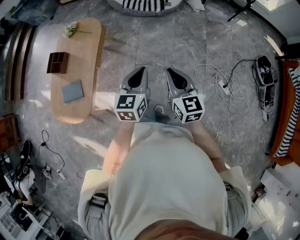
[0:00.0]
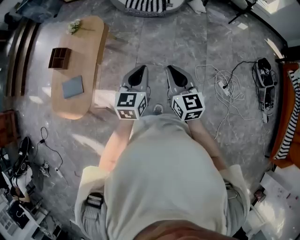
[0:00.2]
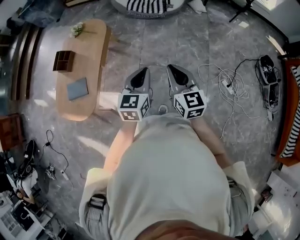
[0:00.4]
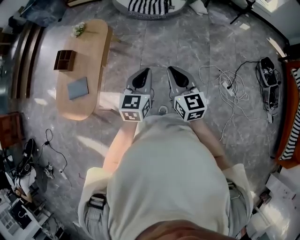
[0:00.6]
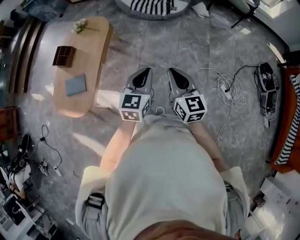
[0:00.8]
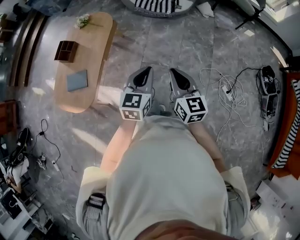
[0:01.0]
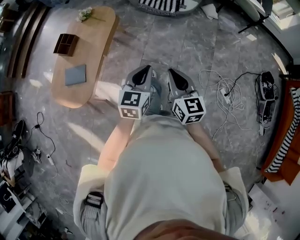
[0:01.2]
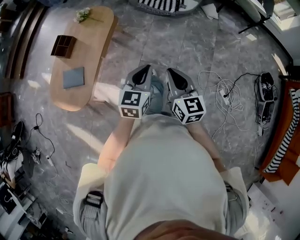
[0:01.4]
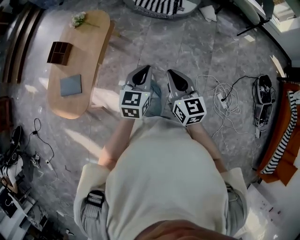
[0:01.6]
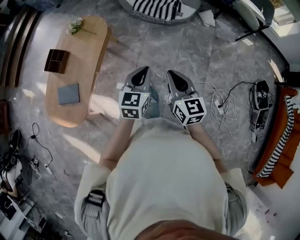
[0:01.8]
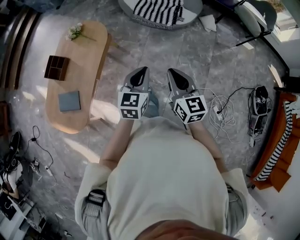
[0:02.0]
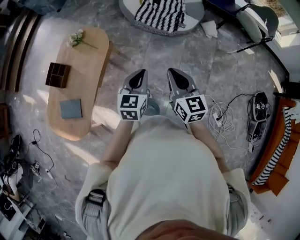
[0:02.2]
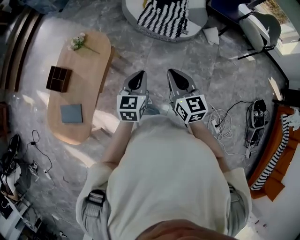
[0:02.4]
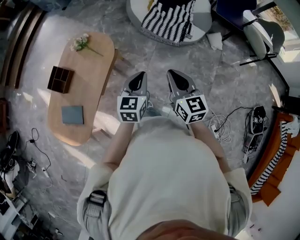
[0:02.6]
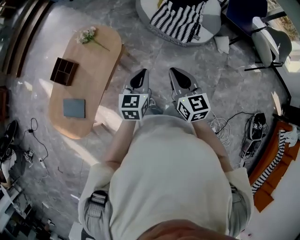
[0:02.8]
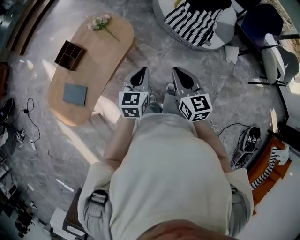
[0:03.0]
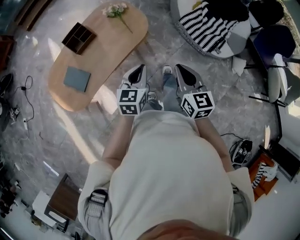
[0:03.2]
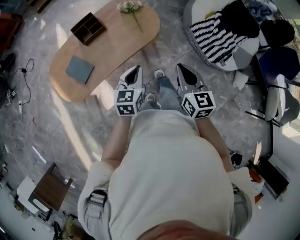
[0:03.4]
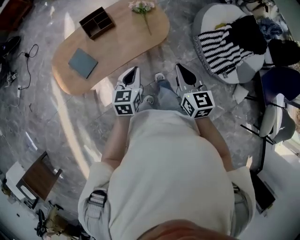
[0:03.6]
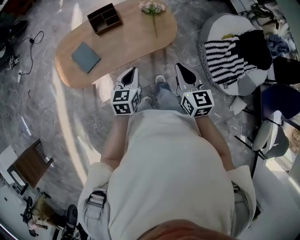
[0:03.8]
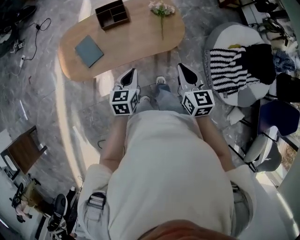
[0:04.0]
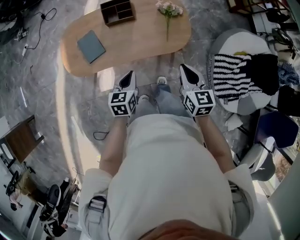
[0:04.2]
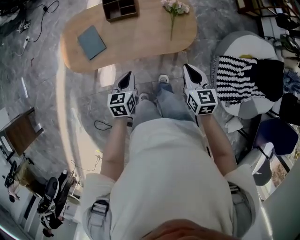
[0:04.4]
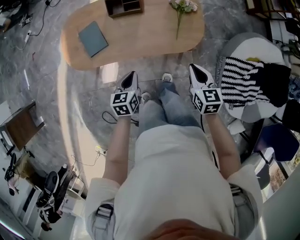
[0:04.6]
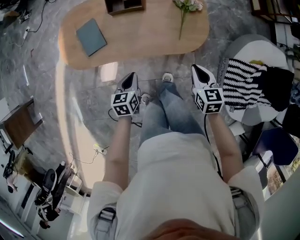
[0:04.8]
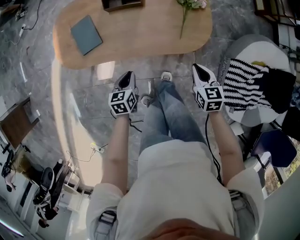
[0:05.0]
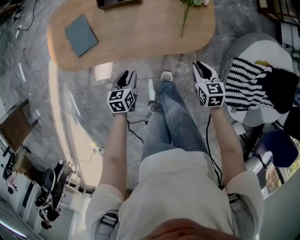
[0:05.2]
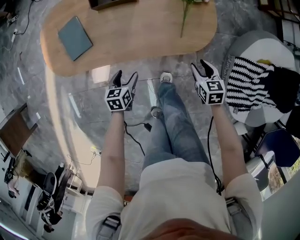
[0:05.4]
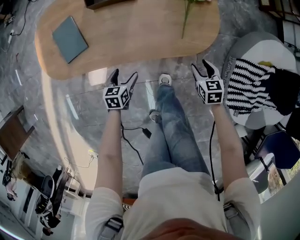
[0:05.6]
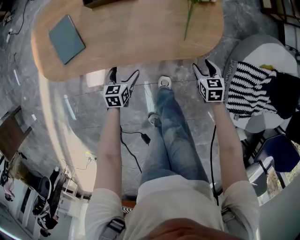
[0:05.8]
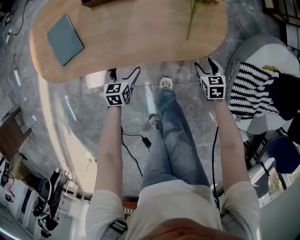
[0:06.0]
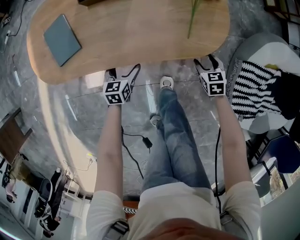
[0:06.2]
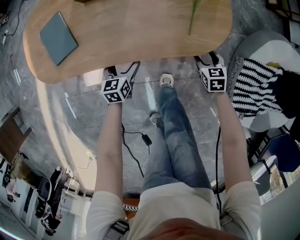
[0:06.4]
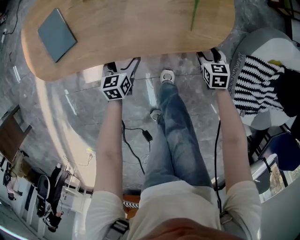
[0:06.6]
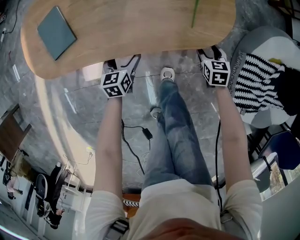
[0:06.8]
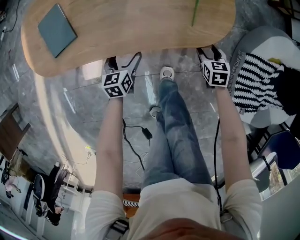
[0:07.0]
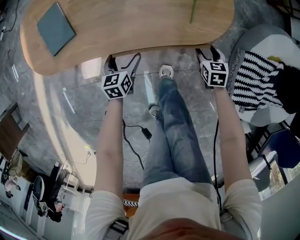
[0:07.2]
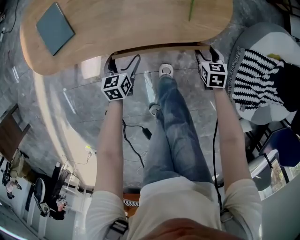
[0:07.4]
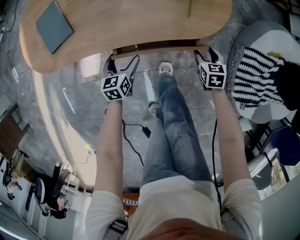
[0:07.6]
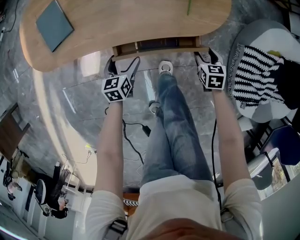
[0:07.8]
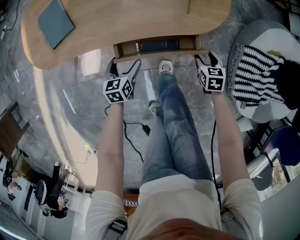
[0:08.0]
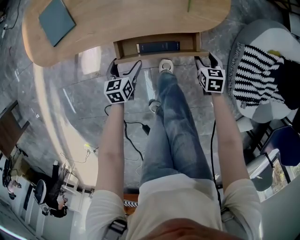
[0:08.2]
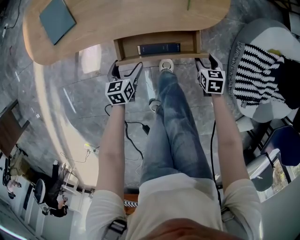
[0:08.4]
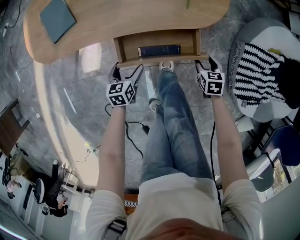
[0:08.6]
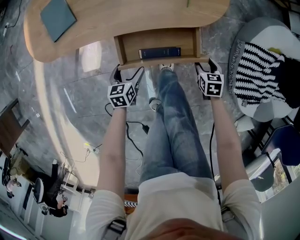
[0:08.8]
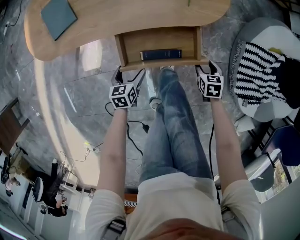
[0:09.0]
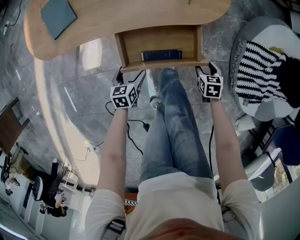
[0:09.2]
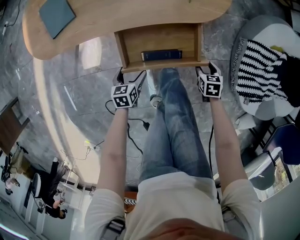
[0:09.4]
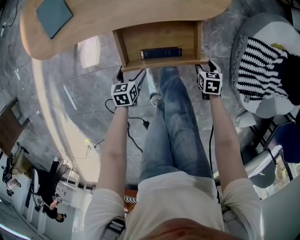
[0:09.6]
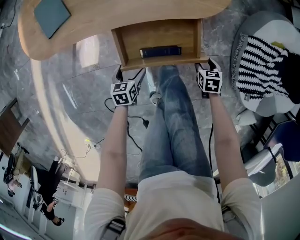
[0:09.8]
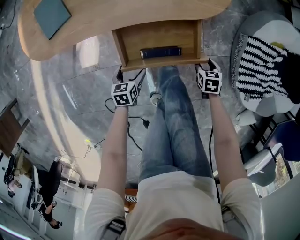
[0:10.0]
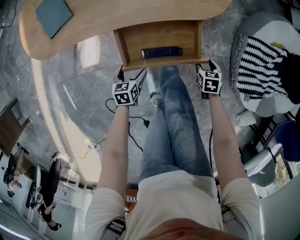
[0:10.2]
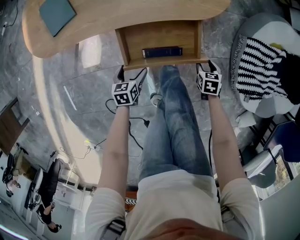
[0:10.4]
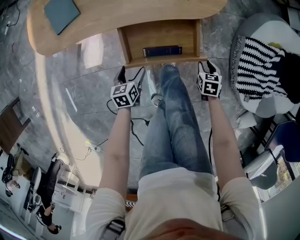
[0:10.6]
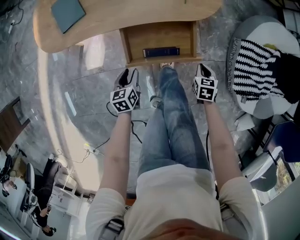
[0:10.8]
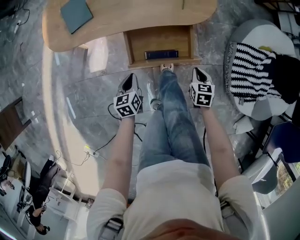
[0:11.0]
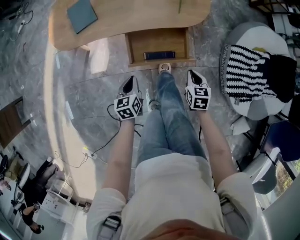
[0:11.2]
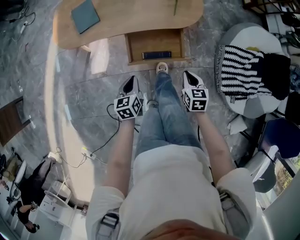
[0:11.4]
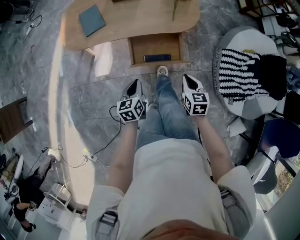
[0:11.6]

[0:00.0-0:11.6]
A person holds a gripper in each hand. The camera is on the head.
0:00.0 to 0:01.4: The grippers make only small movements.
0:01.4 to 0:02.8: Both grippers travel together forward, some 35 cm.
0:02.8 to 0:04.4: The right gripper changes place by roughly 35 cm, and rotates about 50 degrees, while the left gripper shifts by about 30 cm, and swivels approximately 70 degrees.
0:04.4 to 0:05.8: The grippers both shift downward by some 35 cm. The right gripper swivels some 20 degrees, and opens. Meanwhile the left gripper opens its fingers.
0:05.8 to 0:07.2: The right gripper shifts about 5 cm downward.
0:07.2 to 0:08.8: Both grippers travel together backward, about 15 cm.
0:08.8 to 0:10.2: The left gripper shifts by about 5 cm. The right gripper ends up approximately 5 cm from where it was.
0:10.2 to 0:11.6: Both grippers travel together upward, roughly 30 cm. The left gripper swivels some 20 degrees, and closes up; the right gripper swivels approximately 30 degrees, and closes its fingers.

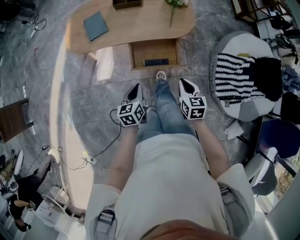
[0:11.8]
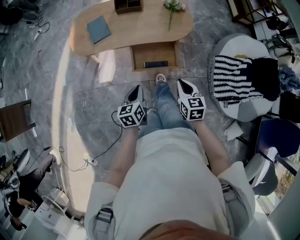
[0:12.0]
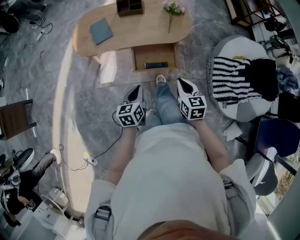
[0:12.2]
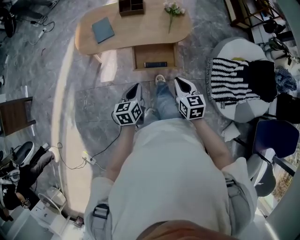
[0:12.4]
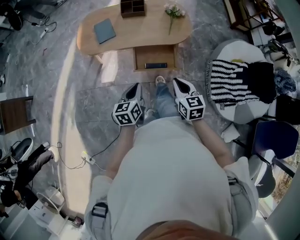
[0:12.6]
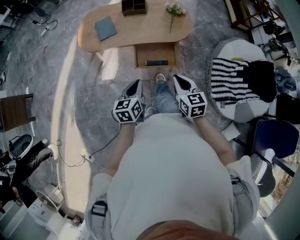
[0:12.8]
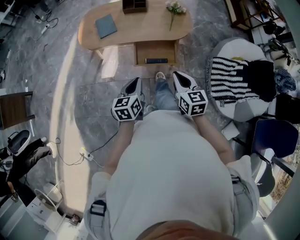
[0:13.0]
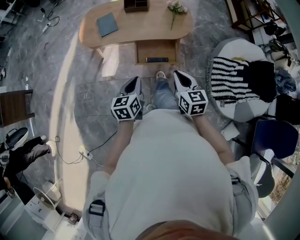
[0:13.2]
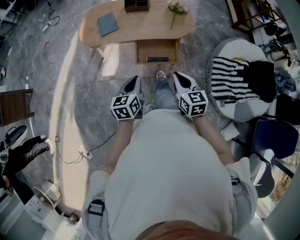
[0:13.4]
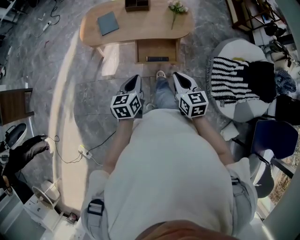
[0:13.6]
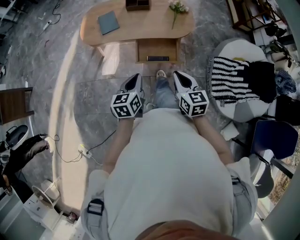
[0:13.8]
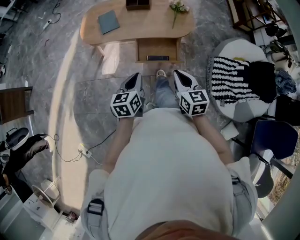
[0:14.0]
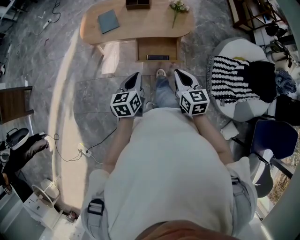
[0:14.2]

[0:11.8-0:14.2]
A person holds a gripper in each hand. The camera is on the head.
0:11.8 to 0:13.0: Both grippers travel together upward, some 15 cm.
0:13.0 to 0:14.2: The grippers stay close to where they were, moving slightly.

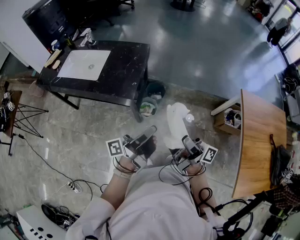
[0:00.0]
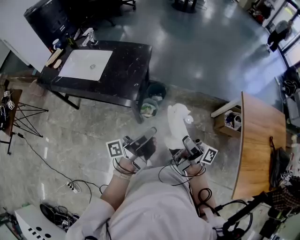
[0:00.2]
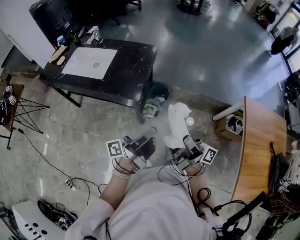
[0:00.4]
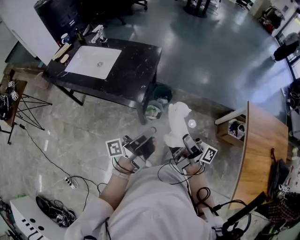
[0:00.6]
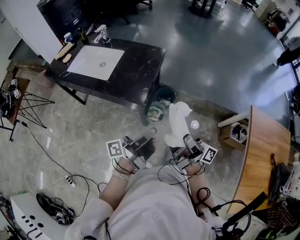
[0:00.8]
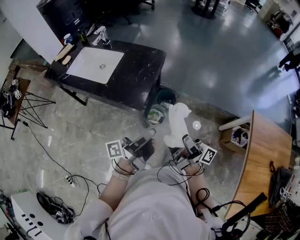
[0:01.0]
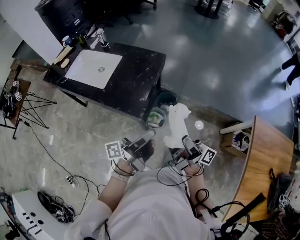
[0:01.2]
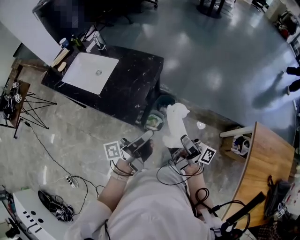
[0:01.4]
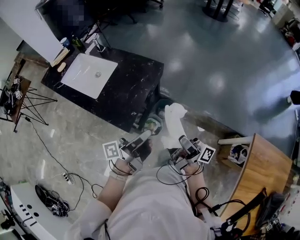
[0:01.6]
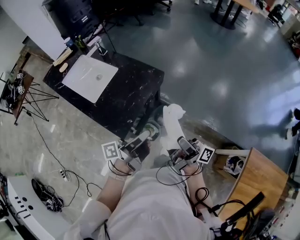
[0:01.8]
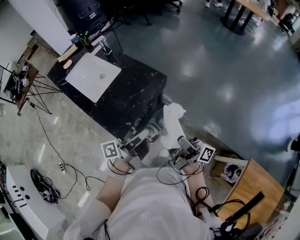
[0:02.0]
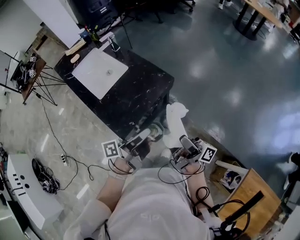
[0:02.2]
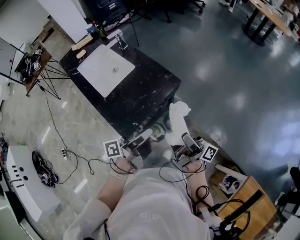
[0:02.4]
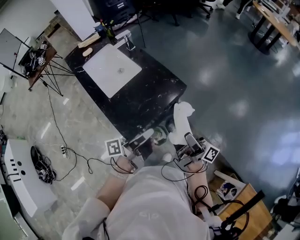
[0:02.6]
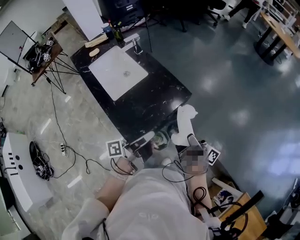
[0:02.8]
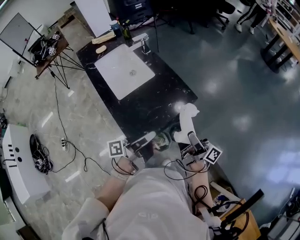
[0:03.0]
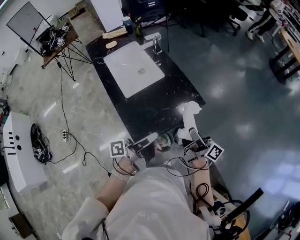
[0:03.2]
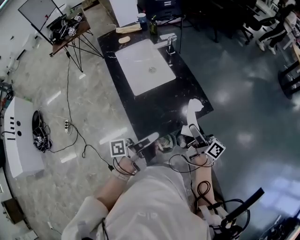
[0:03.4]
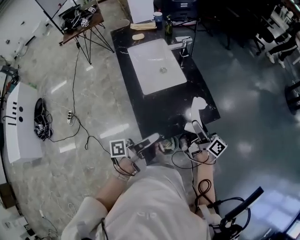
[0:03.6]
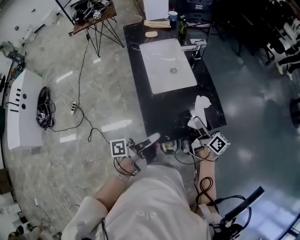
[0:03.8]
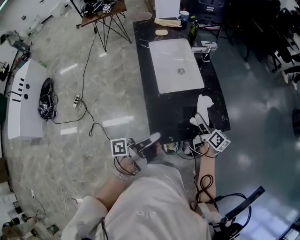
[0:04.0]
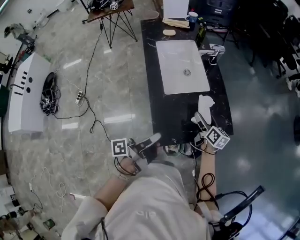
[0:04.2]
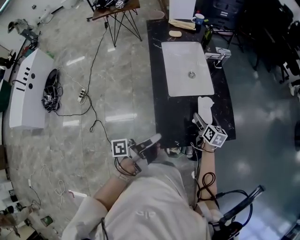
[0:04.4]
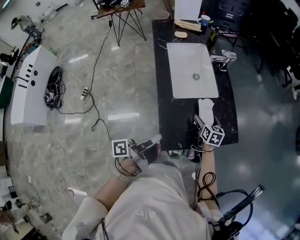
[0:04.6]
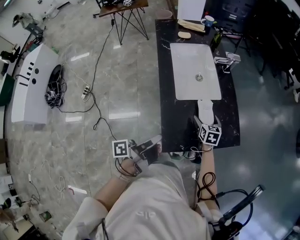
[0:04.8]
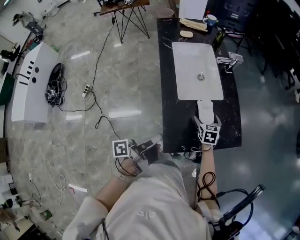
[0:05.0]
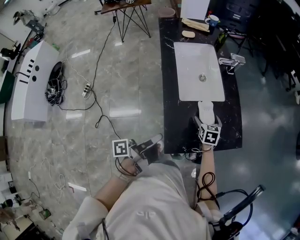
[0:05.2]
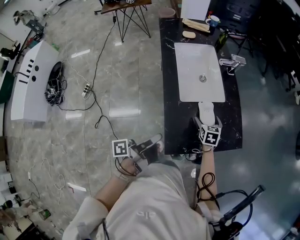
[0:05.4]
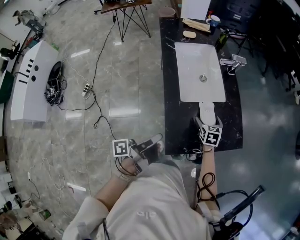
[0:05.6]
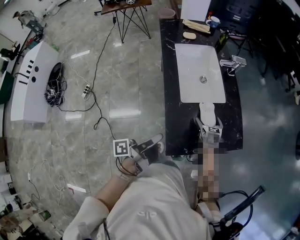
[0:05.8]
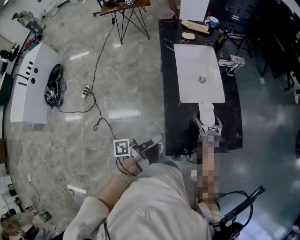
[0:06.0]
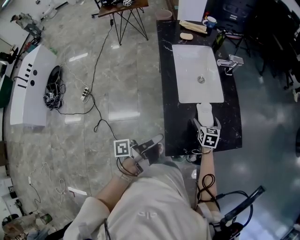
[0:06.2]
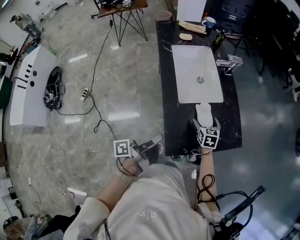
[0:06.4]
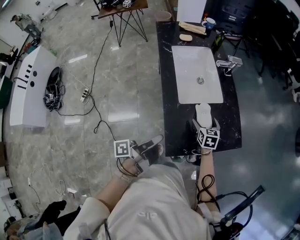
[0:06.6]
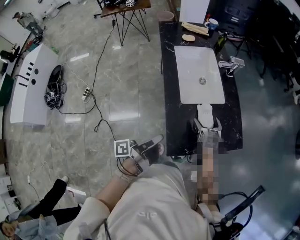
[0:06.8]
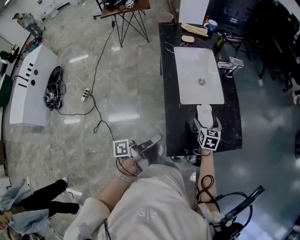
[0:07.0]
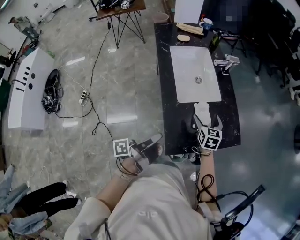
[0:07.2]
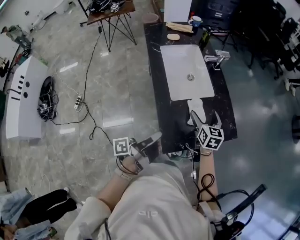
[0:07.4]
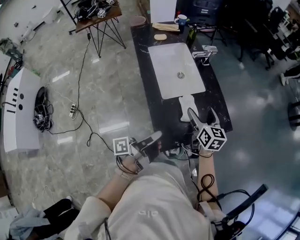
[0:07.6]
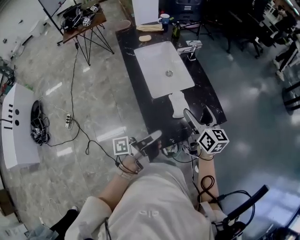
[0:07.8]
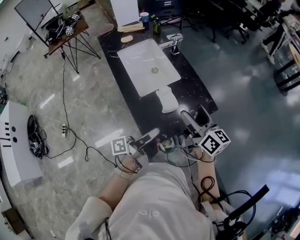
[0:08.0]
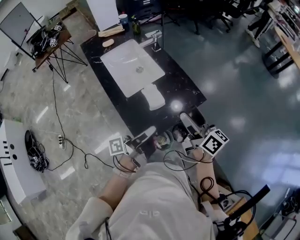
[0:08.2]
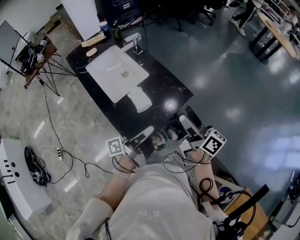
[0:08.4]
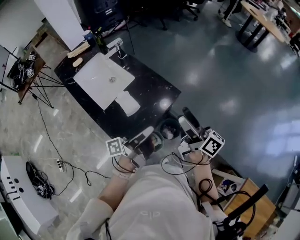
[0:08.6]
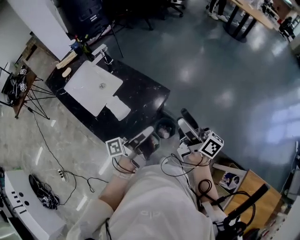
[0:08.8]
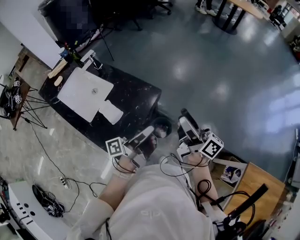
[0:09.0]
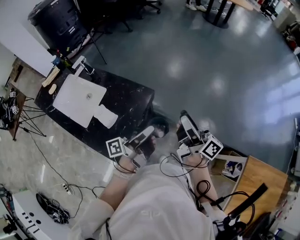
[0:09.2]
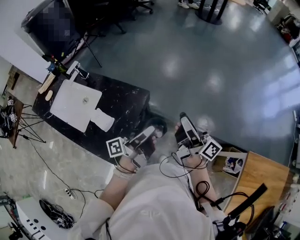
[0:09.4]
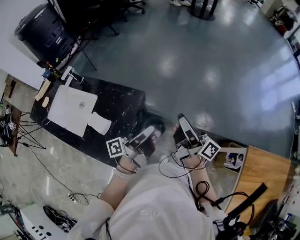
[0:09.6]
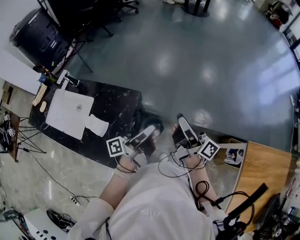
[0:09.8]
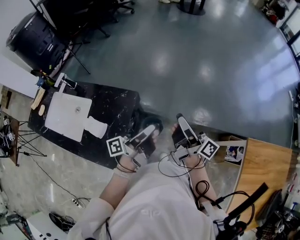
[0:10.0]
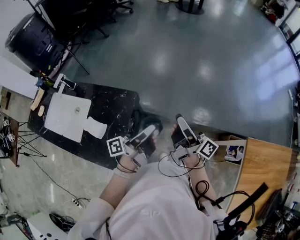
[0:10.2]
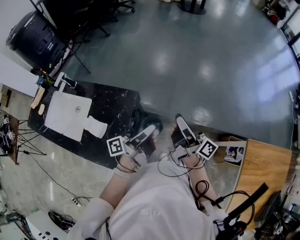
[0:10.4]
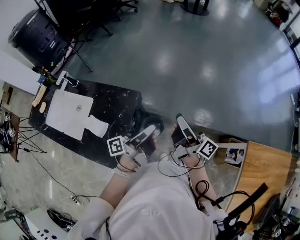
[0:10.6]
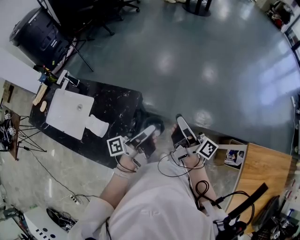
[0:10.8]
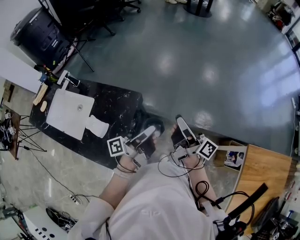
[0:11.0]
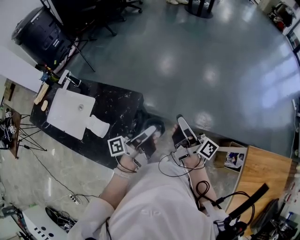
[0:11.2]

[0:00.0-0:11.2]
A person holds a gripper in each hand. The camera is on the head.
0:00.0 to 0:01.6: The right gripper shifts by roughly 30 cm.
0:01.6 to 0:03.2: The right gripper changes place by some 25 cm, and swivels approximately 20 degrees.
0:03.2 to 0:04.8: The right gripper moves some 35 cm, and tilts its fingers about 60 degrees downward.
0:06.4 to 0:08.0: The right gripper travels upward by roughly 25 cm, and angles its fingers upward, by some 40 degrees.
0:08.0 to 0:09.6: The right gripper shifts by roughly 35 cm, changes its angle by about 50 degrees, and closes.
